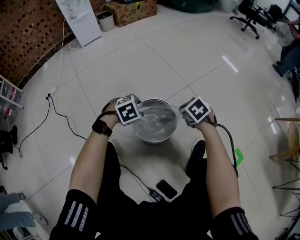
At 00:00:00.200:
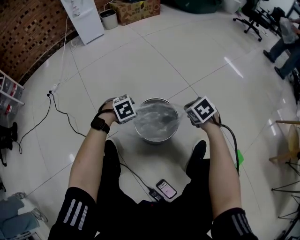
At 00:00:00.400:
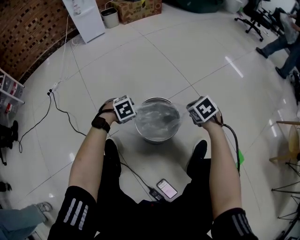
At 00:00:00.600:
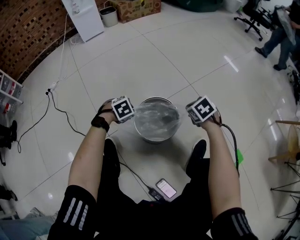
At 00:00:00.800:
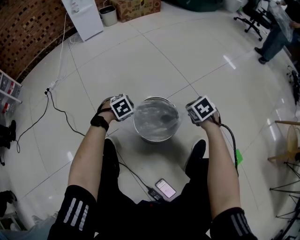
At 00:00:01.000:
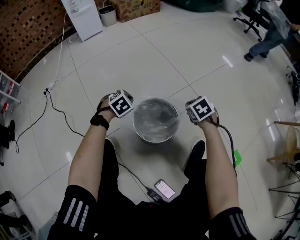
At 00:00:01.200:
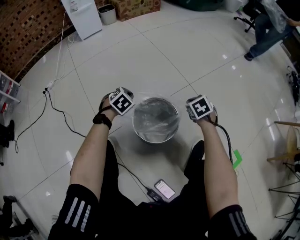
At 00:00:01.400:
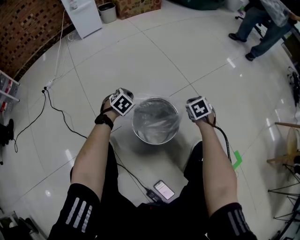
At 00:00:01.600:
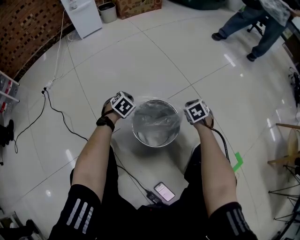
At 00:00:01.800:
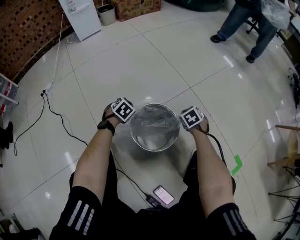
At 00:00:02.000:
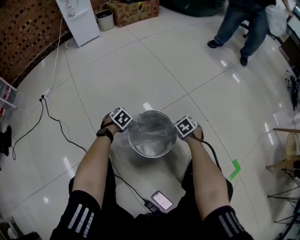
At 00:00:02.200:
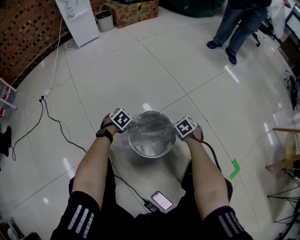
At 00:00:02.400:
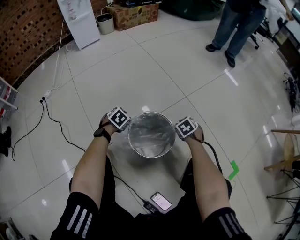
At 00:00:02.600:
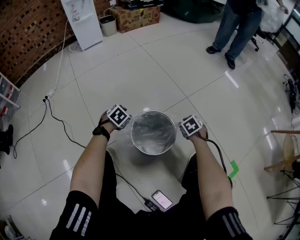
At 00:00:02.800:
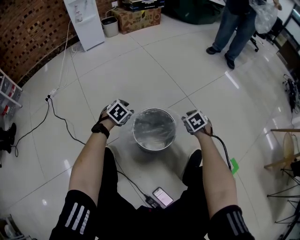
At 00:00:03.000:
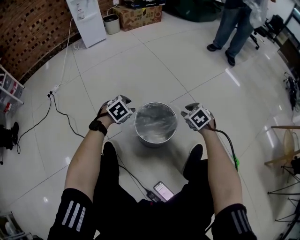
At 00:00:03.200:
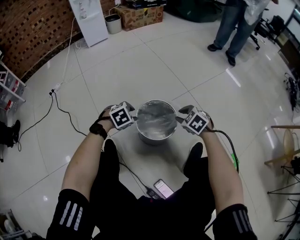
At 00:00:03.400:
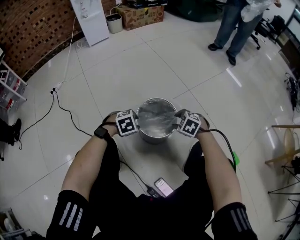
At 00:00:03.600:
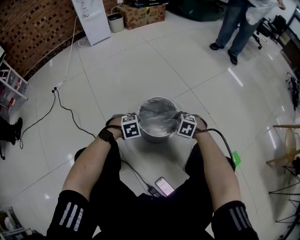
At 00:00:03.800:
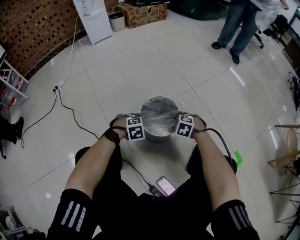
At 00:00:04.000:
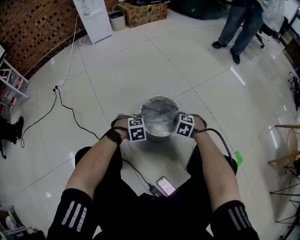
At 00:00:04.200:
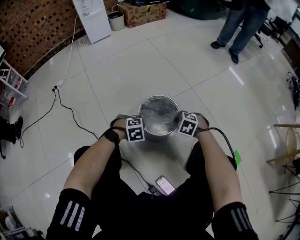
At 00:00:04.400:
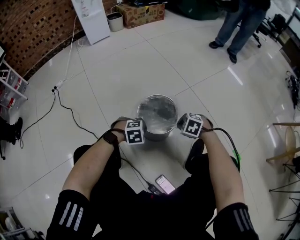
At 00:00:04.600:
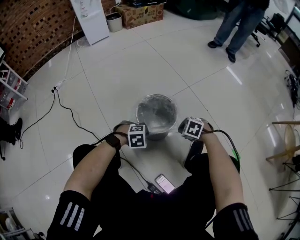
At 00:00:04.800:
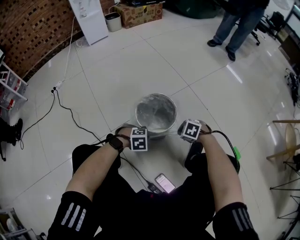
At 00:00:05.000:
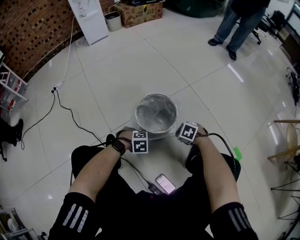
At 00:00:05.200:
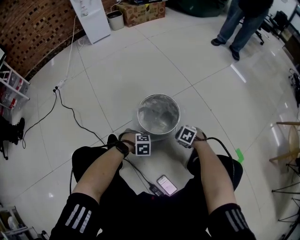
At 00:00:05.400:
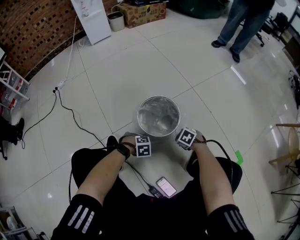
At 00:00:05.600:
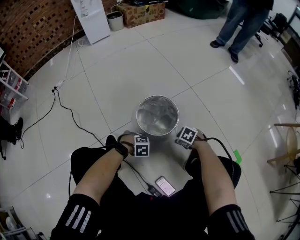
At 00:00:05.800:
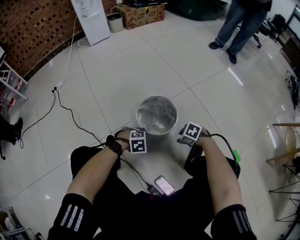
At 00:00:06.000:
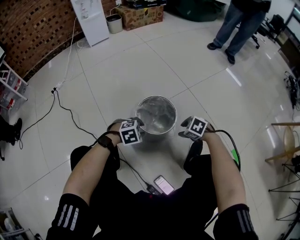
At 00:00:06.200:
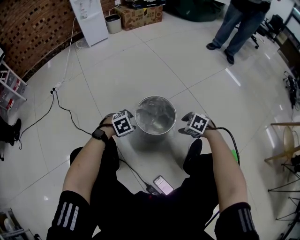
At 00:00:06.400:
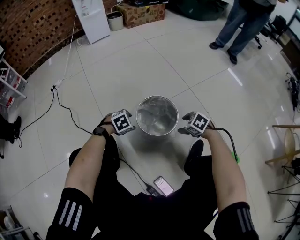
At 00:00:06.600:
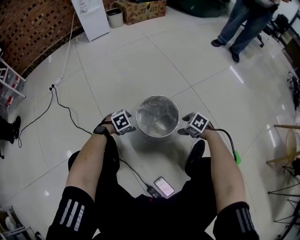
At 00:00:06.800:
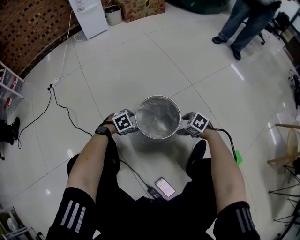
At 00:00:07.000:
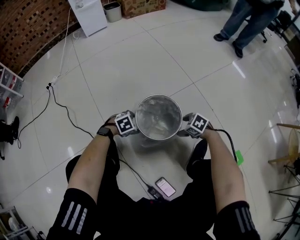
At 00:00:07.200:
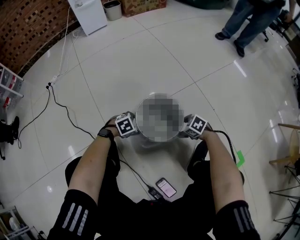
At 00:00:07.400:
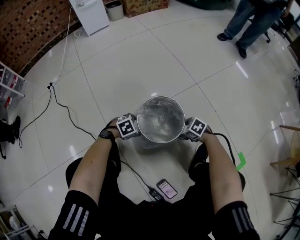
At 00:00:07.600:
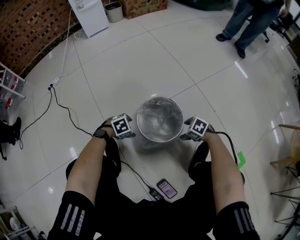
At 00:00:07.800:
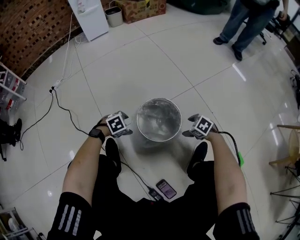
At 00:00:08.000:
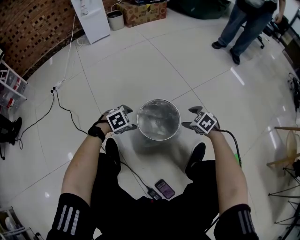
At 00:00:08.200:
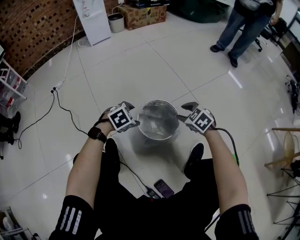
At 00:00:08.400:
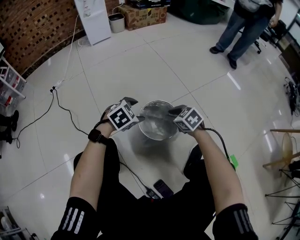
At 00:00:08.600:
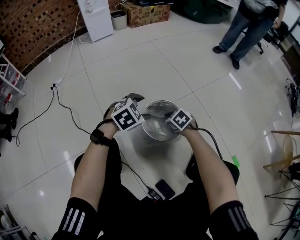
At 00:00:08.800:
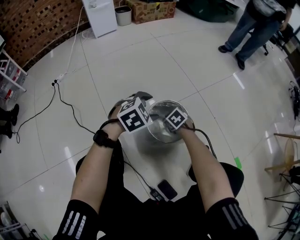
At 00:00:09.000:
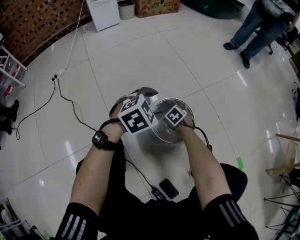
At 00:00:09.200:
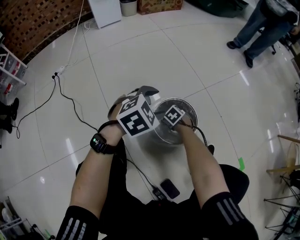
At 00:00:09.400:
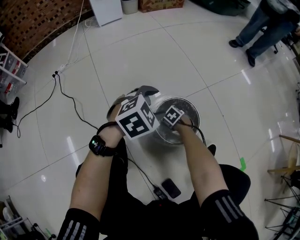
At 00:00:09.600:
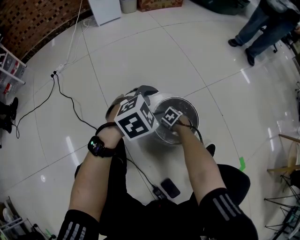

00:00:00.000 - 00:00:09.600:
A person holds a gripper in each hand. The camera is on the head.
00:00:00.000 - 00:00:01.600: The left gripper is displaced forward, downward and to the left by roughly 15 cm, rotates approximately 30 degrees, and closes. Meanwhile the right gripper moves downward and forward, approximately 15 cm.
00:00:01.600 - 00:00:03.200: The left gripper shifts about 15 cm backward and upward, changes its angle by roughly 20 degrees, and opens up, while the right gripper shifts some 15 cm backward, upward and to the left, and turns by approximately 30 degrees.
00:00:03.200 - 00:00:04.800: The right gripper changes place by approximately 15 cm, and changes its angle by approximately 20 degrees. The left gripper changes place by some 20 cm, turns by roughly 30 degrees, and closes its fingers.
00:00:04.800 - 00:00:06.400: The right gripper reaches about 5 cm downward, then returns, and opens its fingers; the left gripper goes up and down, roughly 15 cm each way, reversing 2 times, swivels about 30 degrees, and opens its fingers.
00:00:06.400 - 00:00:08.000: The left gripper reaches some 10 cm downward, then returns; the right gripper goes downward and returns, about 10 cm each way.
00:00:08.000 - 00:00:09.600: The left gripper goes about 15 cm upward, while the right gripper is displaced downward by some 20 cm, swivels about 30 degrees, and closes and opens again.

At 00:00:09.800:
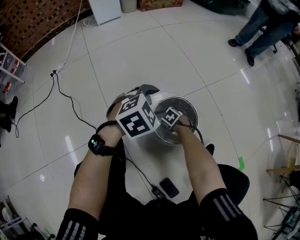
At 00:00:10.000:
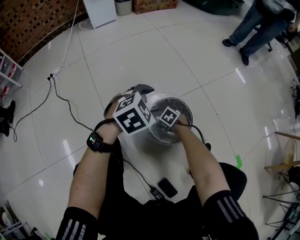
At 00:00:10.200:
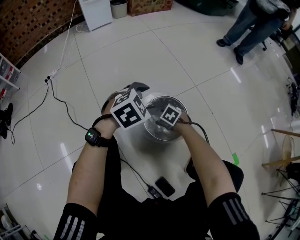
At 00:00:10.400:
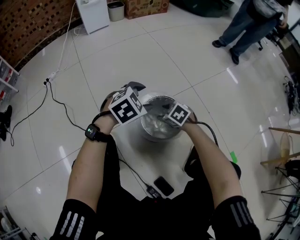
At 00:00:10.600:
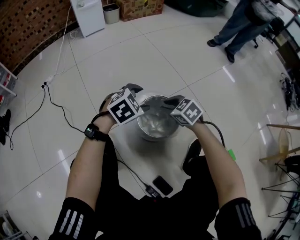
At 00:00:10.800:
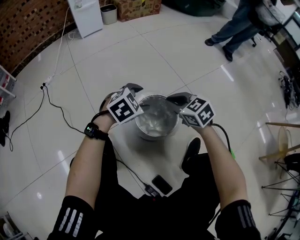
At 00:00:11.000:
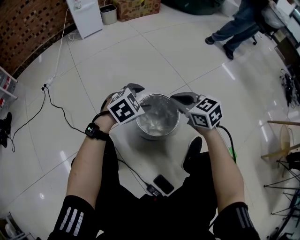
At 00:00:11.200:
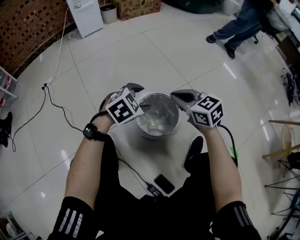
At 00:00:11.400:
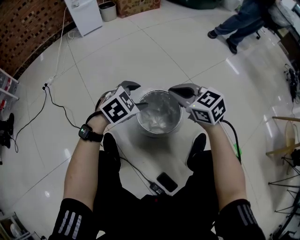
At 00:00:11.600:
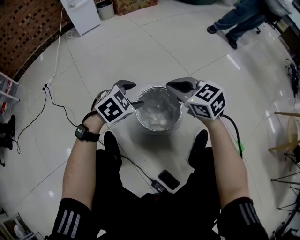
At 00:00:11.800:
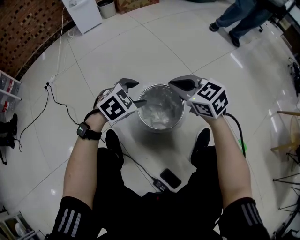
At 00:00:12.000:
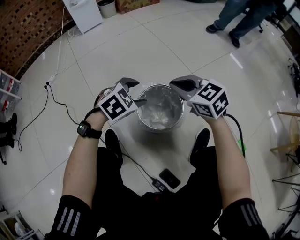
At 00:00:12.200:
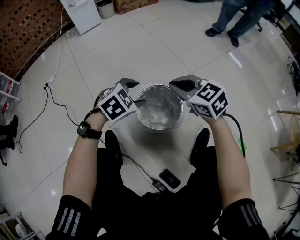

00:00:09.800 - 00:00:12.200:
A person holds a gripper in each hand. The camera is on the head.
00:00:09.800 - 00:00:11.000: The right gripper moves upward, roughly 35 cm, angles its fingers upward, by some 50 degrees, and closes its fingers.
00:00:11.000 - 00:00:12.200: The grippers stay close to where they were, moving slightly.

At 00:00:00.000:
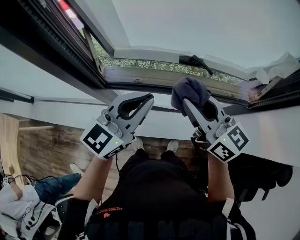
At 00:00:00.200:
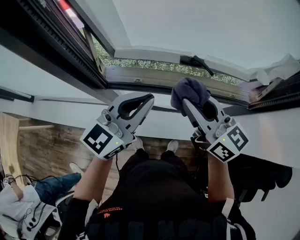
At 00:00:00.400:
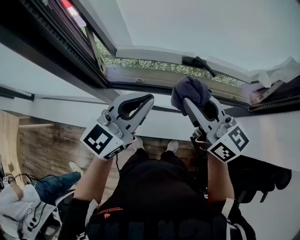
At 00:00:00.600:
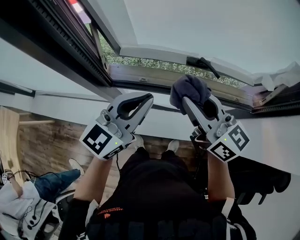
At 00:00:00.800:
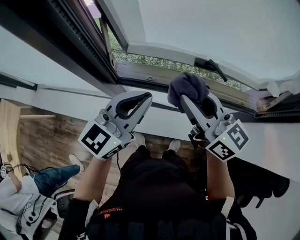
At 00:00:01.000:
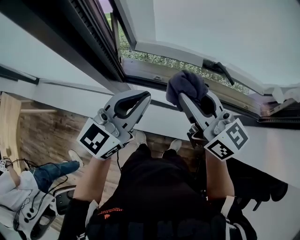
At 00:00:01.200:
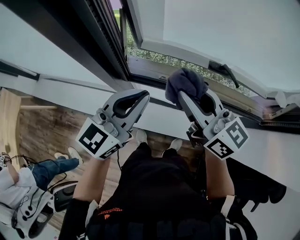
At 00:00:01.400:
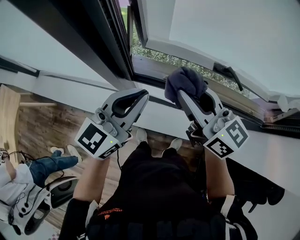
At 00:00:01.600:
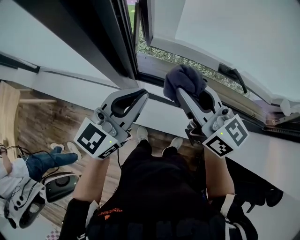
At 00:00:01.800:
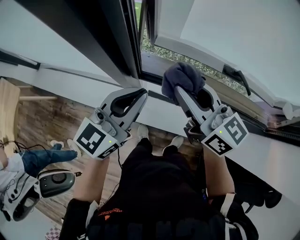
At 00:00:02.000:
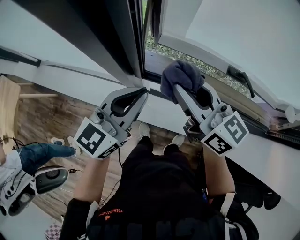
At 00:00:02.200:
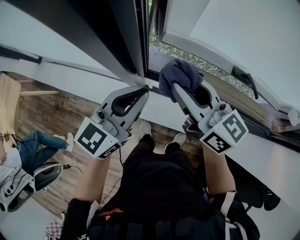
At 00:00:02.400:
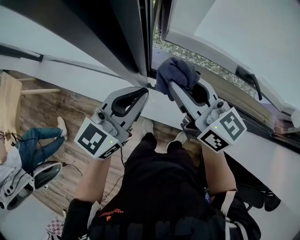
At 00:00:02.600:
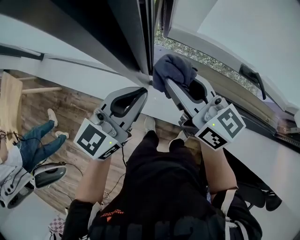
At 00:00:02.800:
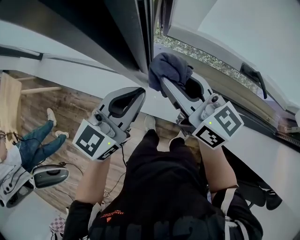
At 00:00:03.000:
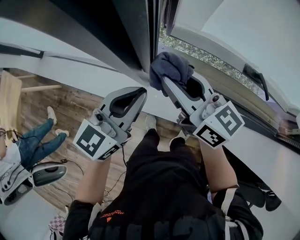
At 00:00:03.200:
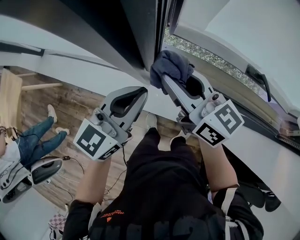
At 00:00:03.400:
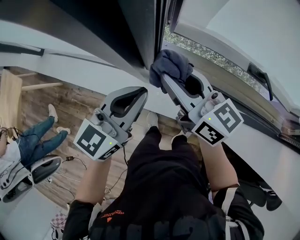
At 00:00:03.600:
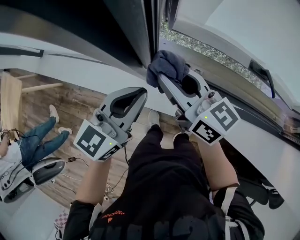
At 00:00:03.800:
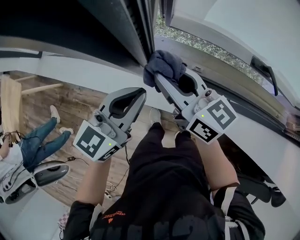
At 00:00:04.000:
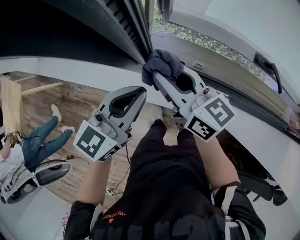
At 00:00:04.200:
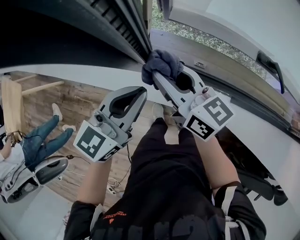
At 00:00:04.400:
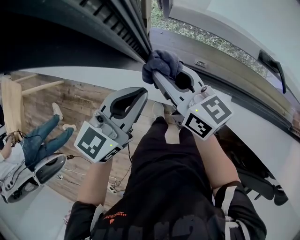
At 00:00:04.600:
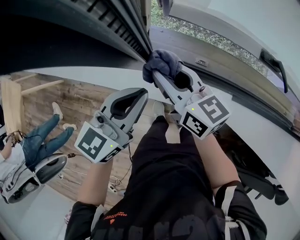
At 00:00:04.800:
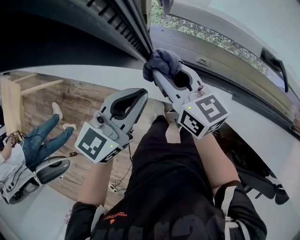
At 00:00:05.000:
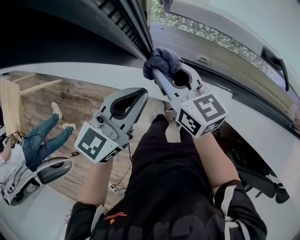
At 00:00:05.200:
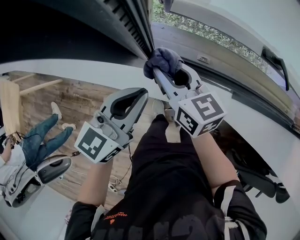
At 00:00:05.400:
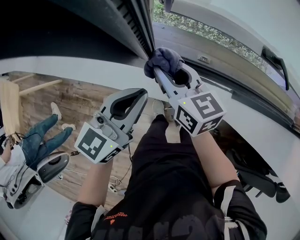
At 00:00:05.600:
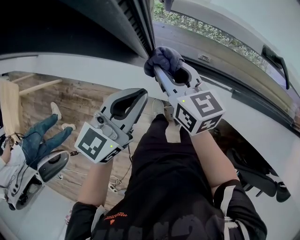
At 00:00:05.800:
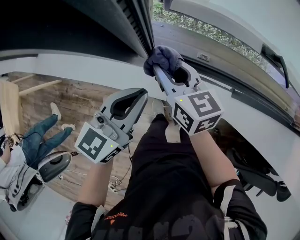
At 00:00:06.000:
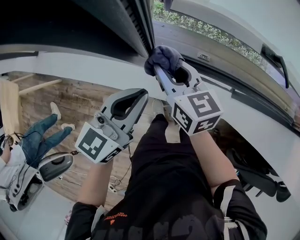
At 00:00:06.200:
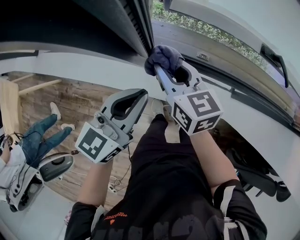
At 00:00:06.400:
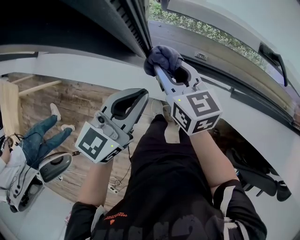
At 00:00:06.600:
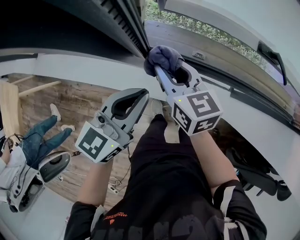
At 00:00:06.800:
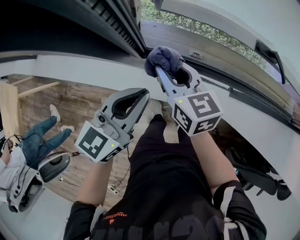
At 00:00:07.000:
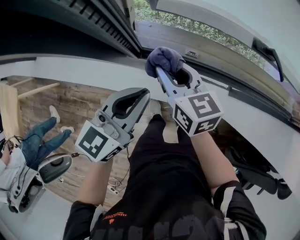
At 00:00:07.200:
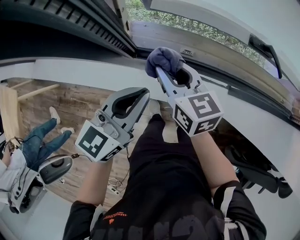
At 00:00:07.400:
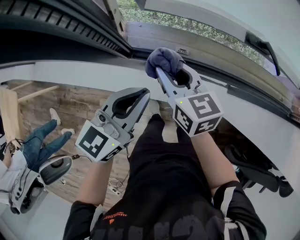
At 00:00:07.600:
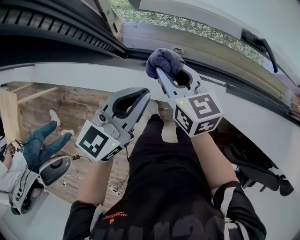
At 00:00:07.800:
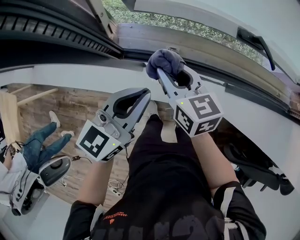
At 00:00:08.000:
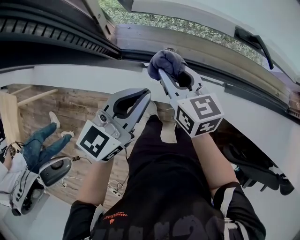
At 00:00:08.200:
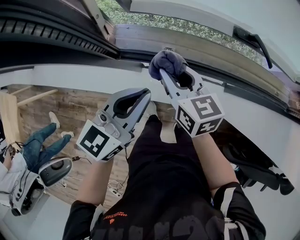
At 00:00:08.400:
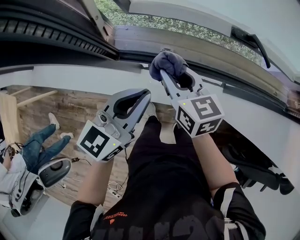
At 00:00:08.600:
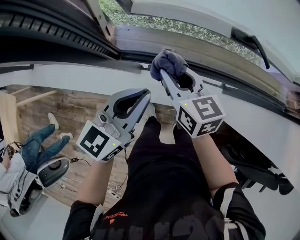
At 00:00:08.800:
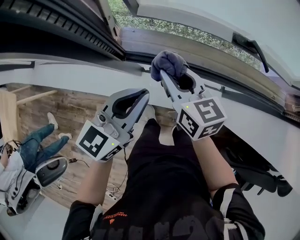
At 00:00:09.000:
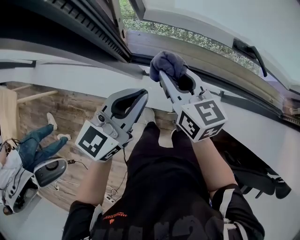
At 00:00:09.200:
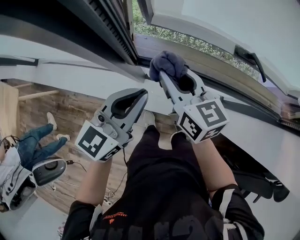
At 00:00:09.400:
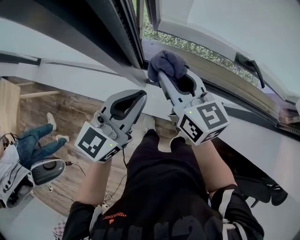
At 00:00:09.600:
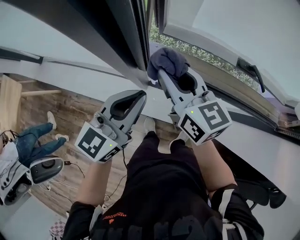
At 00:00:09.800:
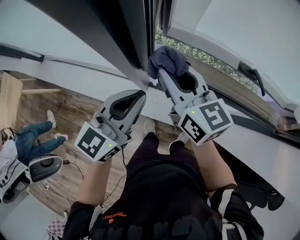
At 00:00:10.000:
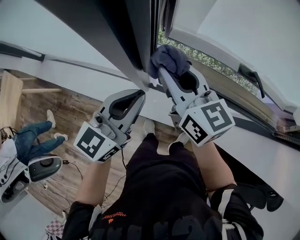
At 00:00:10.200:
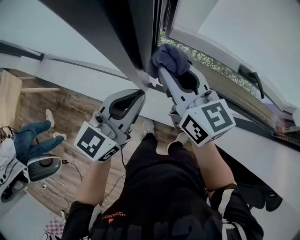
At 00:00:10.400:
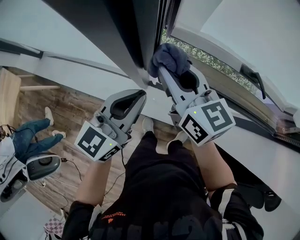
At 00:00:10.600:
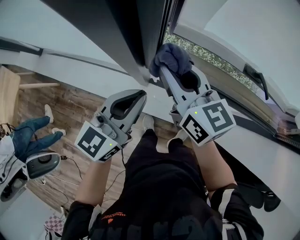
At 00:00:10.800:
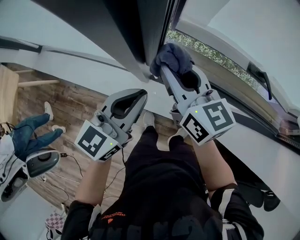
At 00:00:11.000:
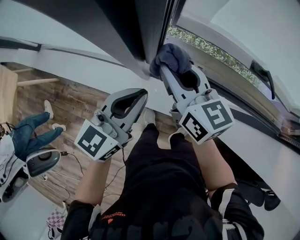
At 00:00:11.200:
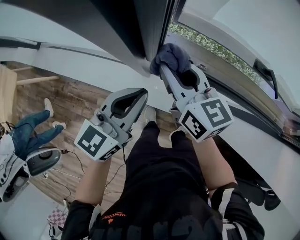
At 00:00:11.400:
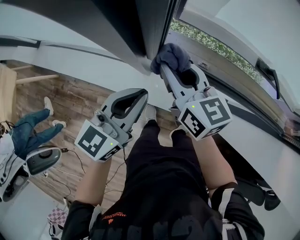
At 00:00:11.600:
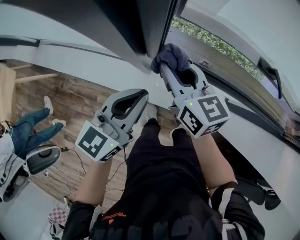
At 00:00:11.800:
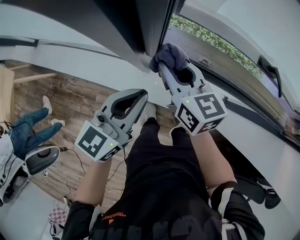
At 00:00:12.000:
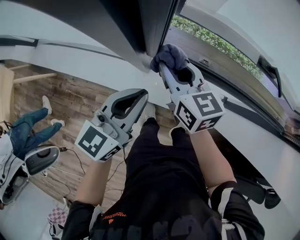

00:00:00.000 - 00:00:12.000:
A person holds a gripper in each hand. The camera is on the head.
00:00:00.000 - 00:00:01.600: Both grippers move to the left, roughly 20 cm.
00:00:01.600 - 00:00:03.000: The left gripper is displaced downward by about 5 cm. Meanwhile the right gripper goes roughly 10 cm to the left and downward.
00:00:03.000 - 00:00:04.400: The left gripper moves downward, some 5 cm. The right gripper moves downward, approximately 10 cm.
00:00:04.400 - 00:00:06.000: The grippers make only small movements.
00:00:06.000 - 00:00:07.600: The two grippers go roughly 10 cm to the right.
00:00:07.600 - 00:00:09.000: The right gripper heads upward, covering roughly 5 cm.
00:00:09.000 - 00:00:10.400: The left gripper goes about 5 cm to the left. Meanwhile the right gripper goes about 15 cm upward and to the left.
00:00:10.400 - 00:00:12.000: The left gripper travels downward by roughly 10 cm. Meanwhile the right gripper shifts some 15 cm downward.
